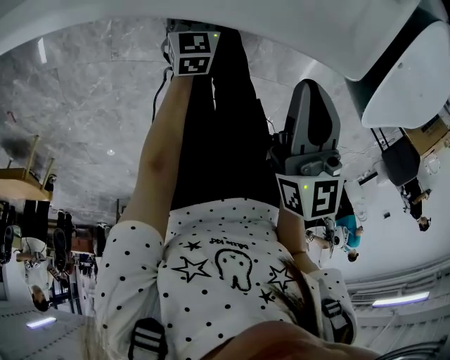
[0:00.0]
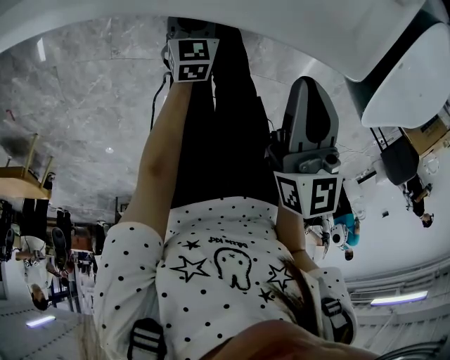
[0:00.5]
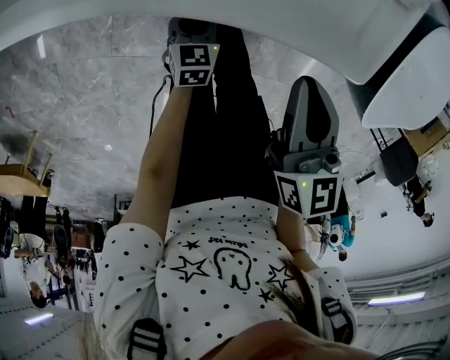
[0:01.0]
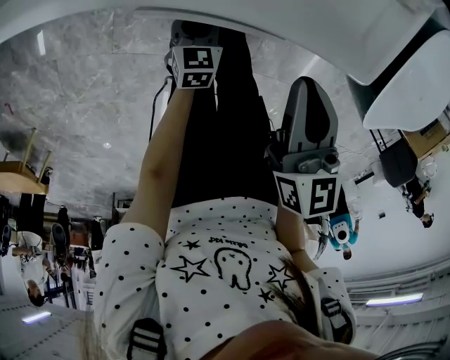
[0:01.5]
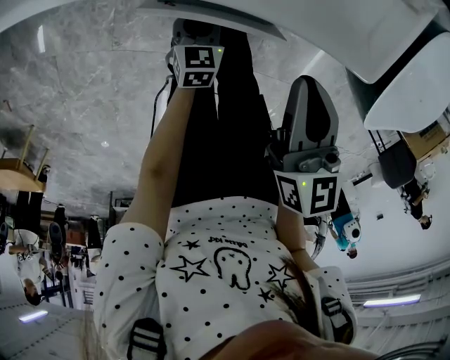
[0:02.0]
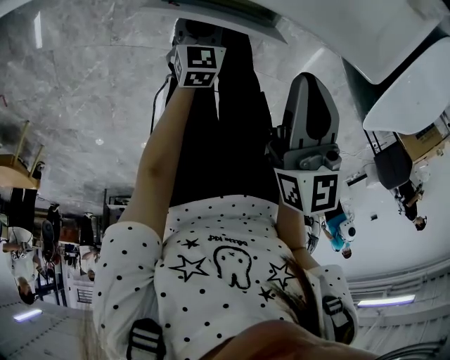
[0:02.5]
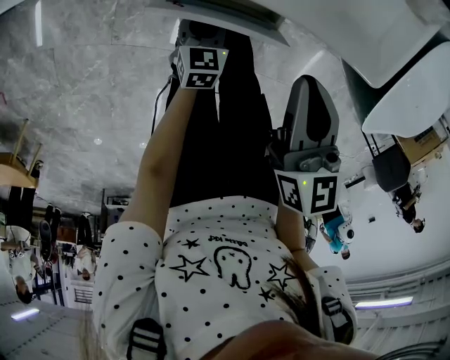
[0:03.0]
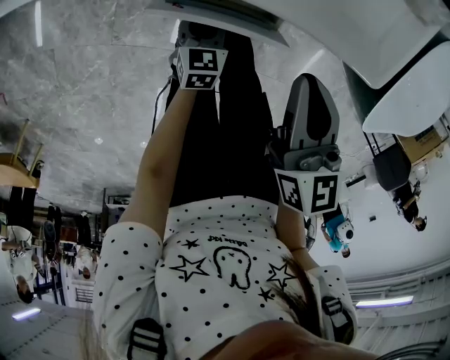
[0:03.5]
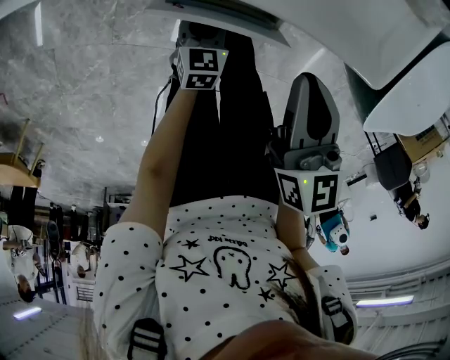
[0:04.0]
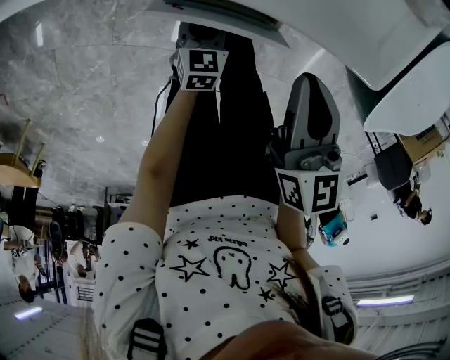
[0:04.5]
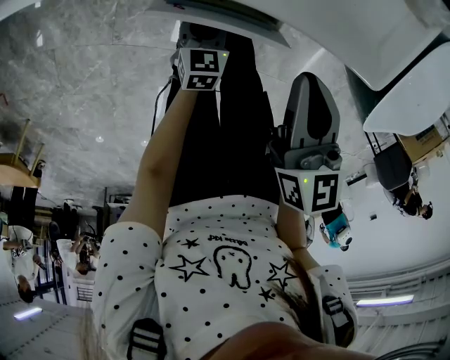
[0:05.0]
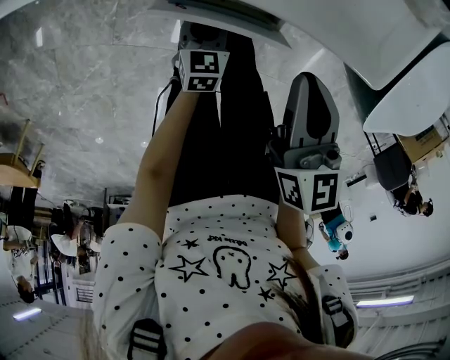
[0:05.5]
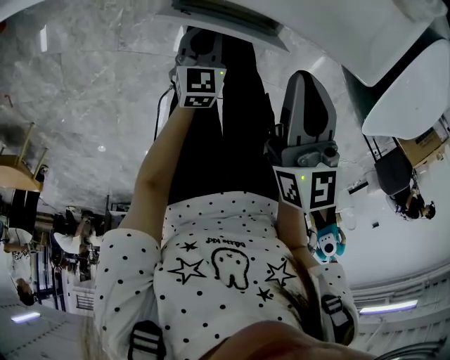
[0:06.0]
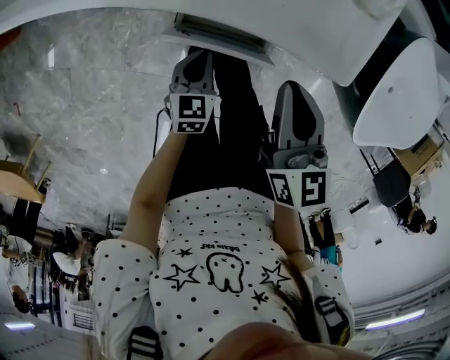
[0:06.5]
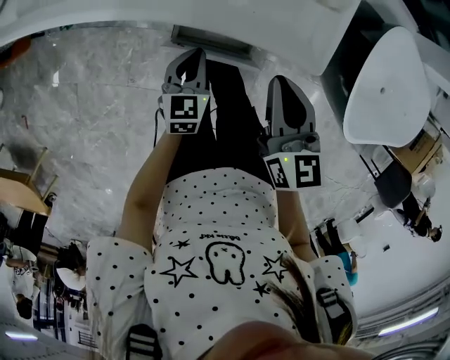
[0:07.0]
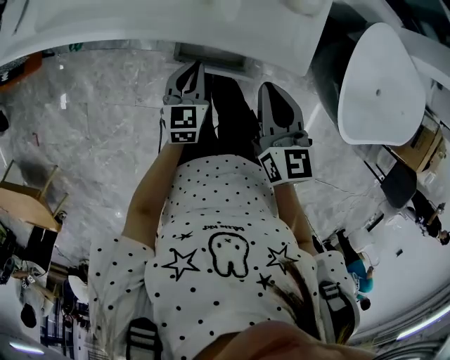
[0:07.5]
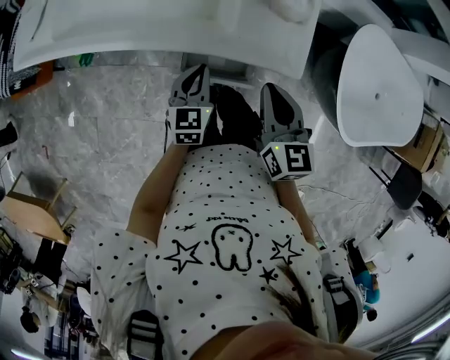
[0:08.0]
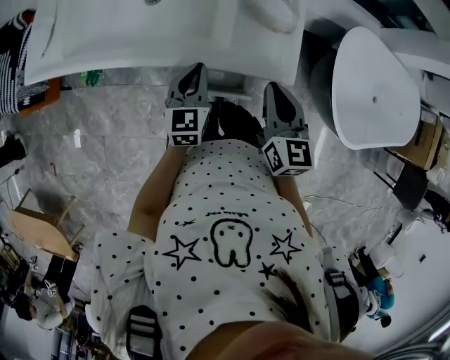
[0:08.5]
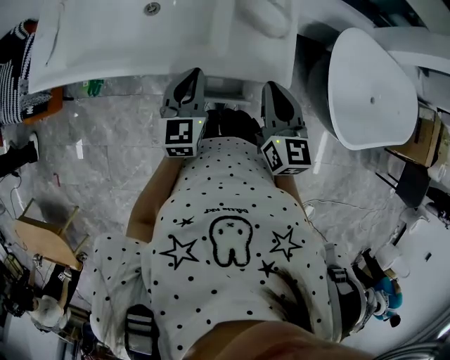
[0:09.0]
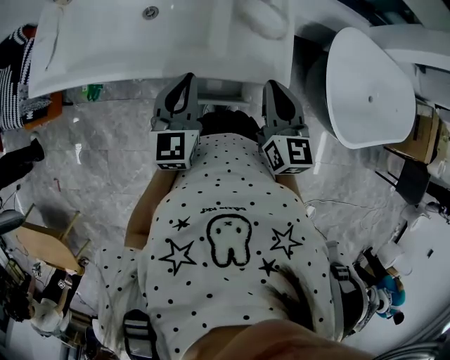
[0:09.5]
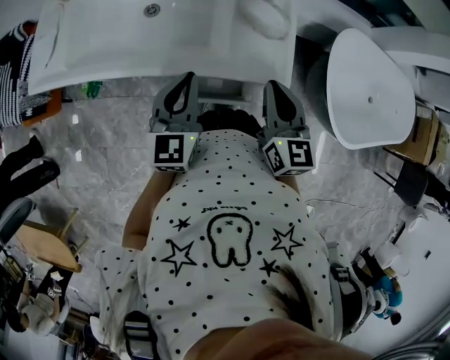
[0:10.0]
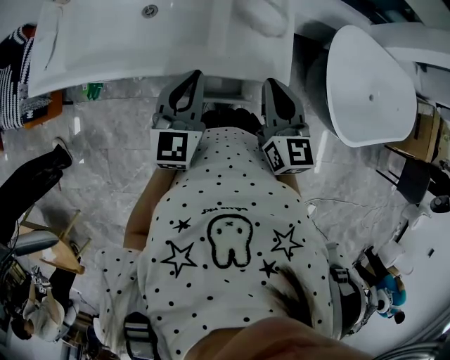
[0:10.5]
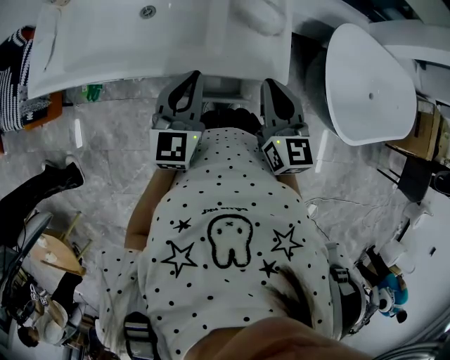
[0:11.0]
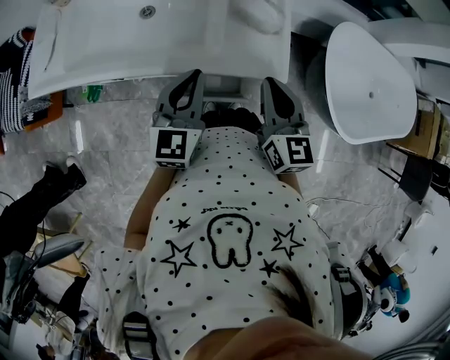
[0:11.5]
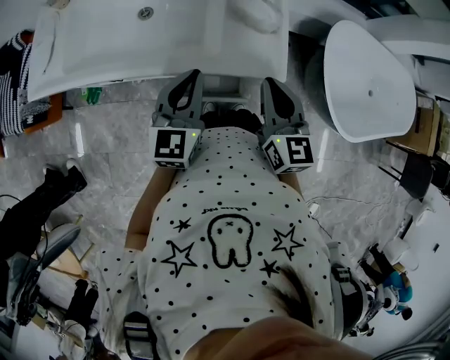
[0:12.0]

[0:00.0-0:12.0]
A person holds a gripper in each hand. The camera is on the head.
0:00.0 to 0:02.0: The left gripper goes roughly 5 cm backward.
0:02.0 to 0:04.0: There are only small adjustments of the grippers.
0:04.0 to 0:06.0: The left gripper goes approximately 5 cm upward, and closes its fingers.
0:06.0 to 0:08.0: The right gripper moves upward, roughly 10 cm; the left gripper heads upward, covering approximately 25 cm.
0:08.0 to 0:10.0: The left gripper is displaced upward by some 15 cm. The right gripper shifts approximately 5 cm upward.
0:10.0 to 0:12.0: The grippers move only a little.

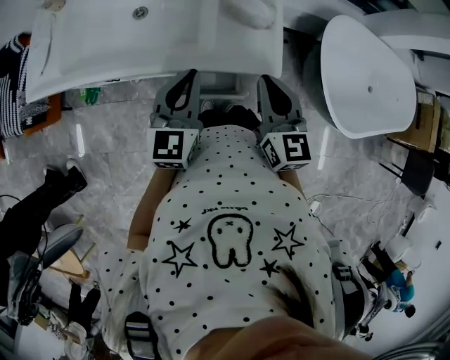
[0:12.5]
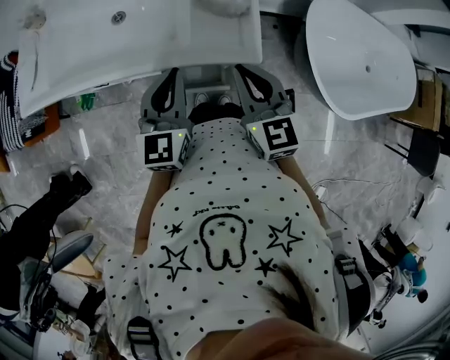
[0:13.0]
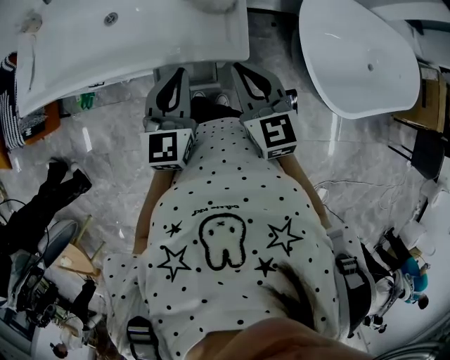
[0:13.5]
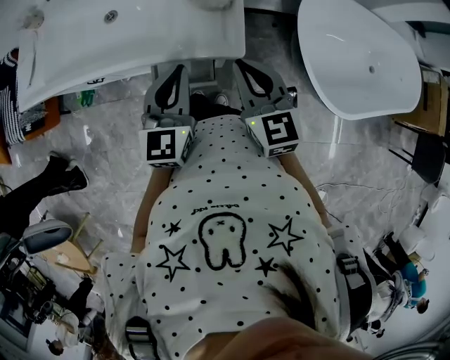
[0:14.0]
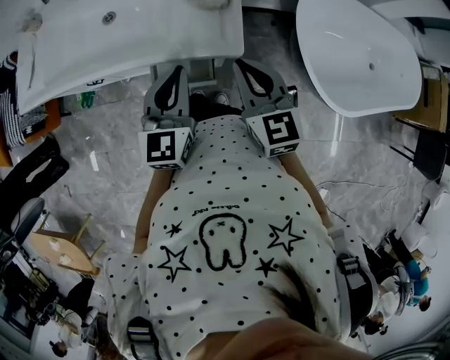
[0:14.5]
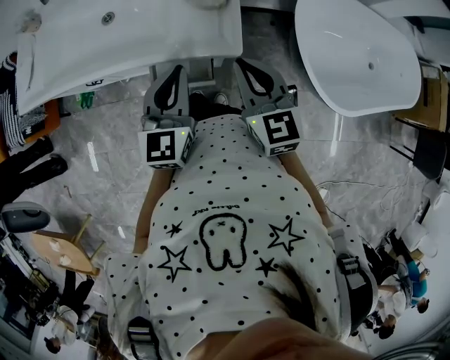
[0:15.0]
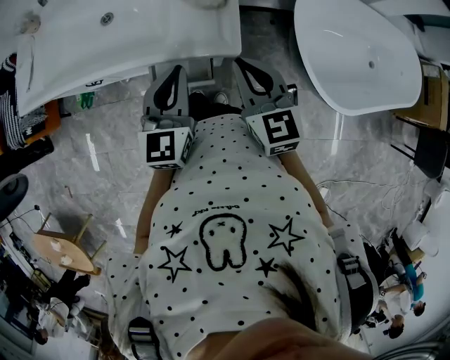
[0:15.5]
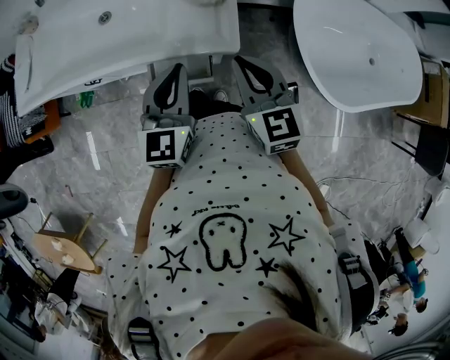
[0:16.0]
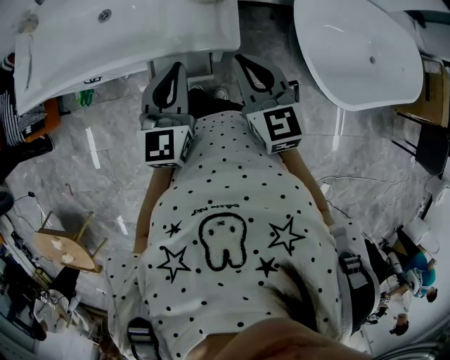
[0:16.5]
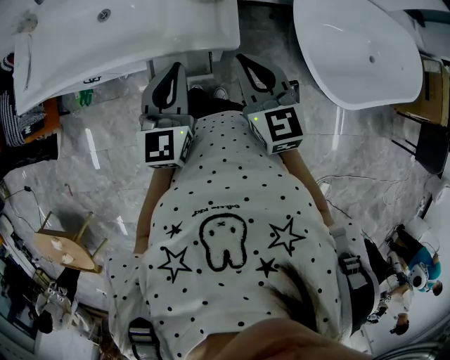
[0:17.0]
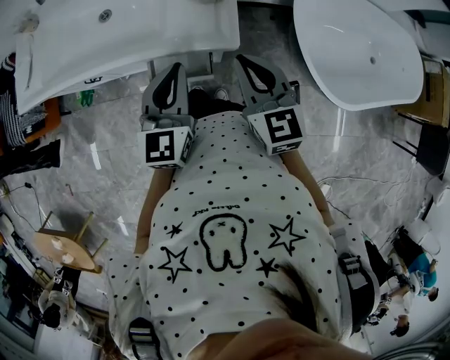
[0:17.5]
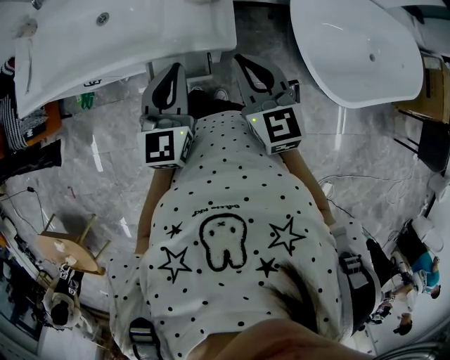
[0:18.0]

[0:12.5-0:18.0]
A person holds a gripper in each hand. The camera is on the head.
0:12.5 to 0:14.5: The two grippers go approximately 10 cm to the right.
0:14.5 to 0:18.0: Both grippers stay about where they are.

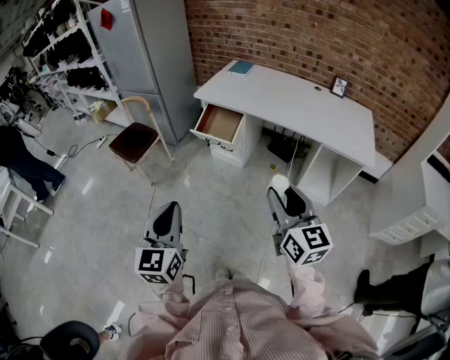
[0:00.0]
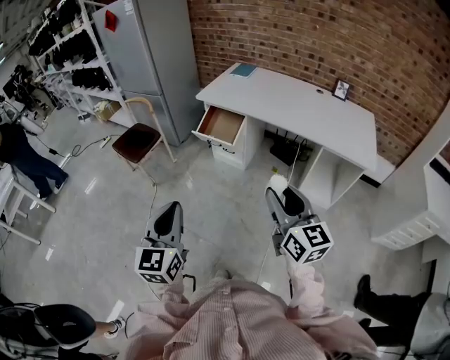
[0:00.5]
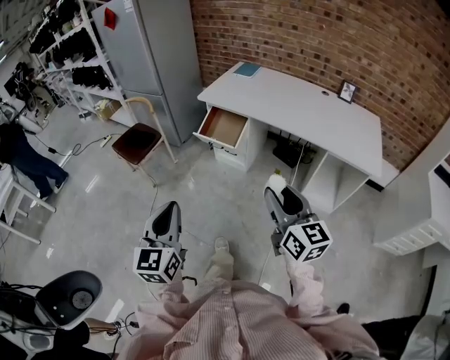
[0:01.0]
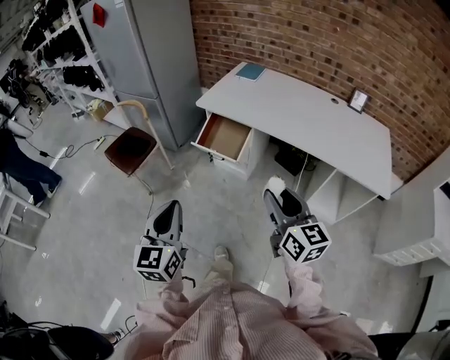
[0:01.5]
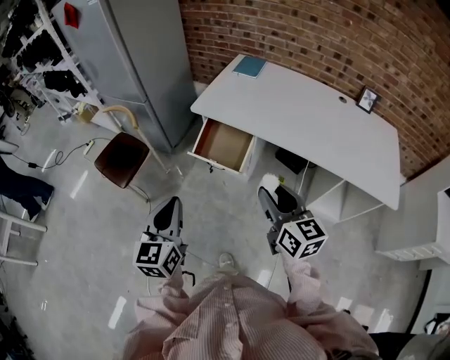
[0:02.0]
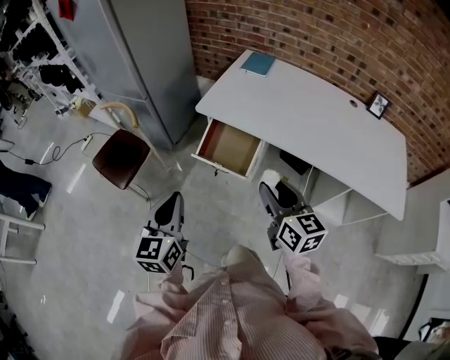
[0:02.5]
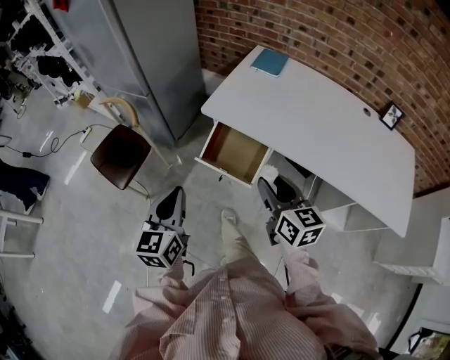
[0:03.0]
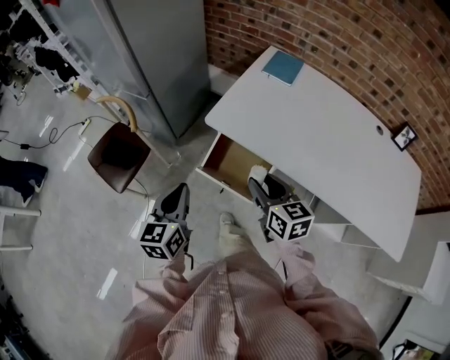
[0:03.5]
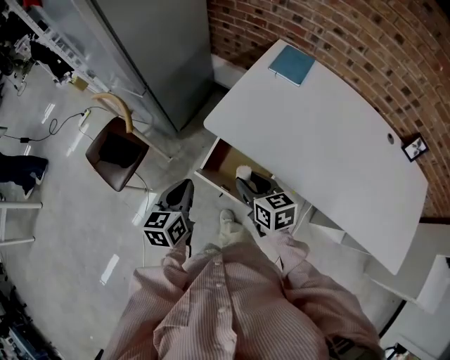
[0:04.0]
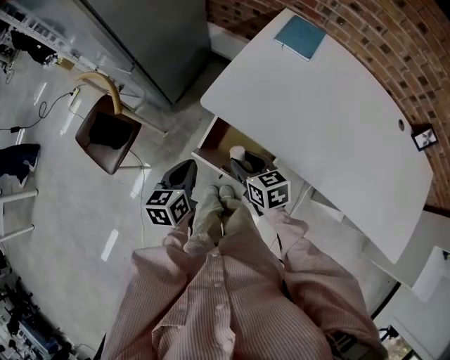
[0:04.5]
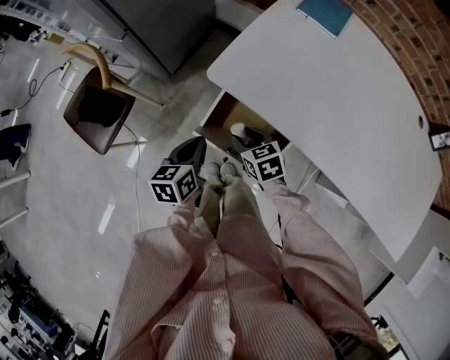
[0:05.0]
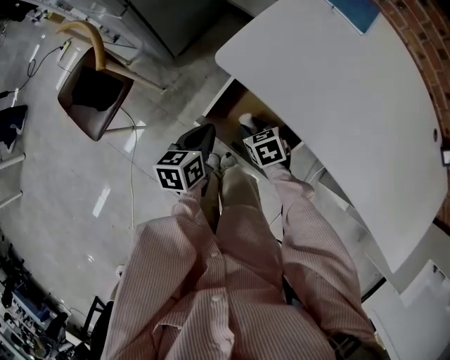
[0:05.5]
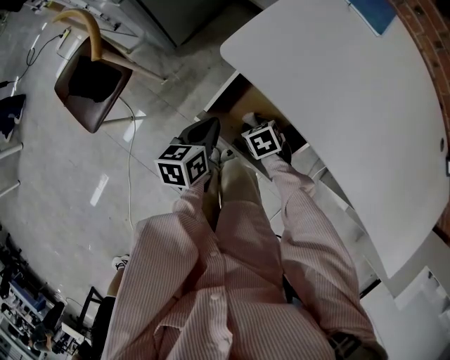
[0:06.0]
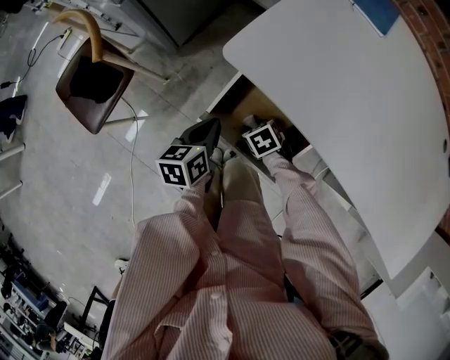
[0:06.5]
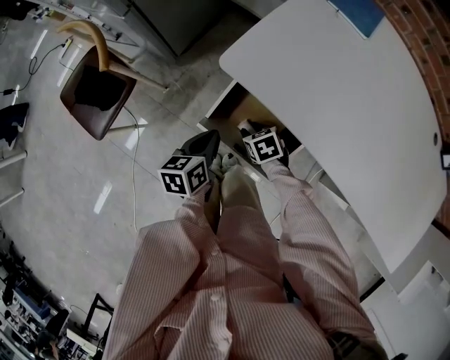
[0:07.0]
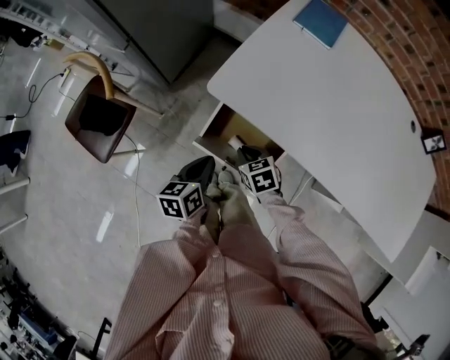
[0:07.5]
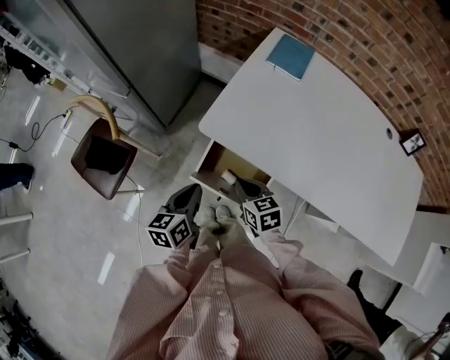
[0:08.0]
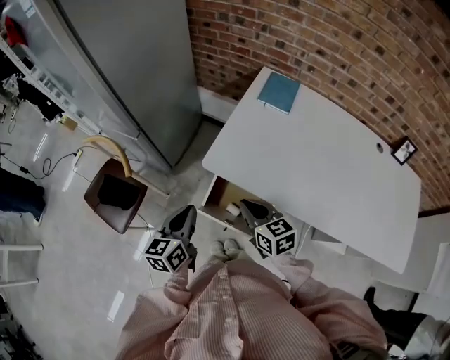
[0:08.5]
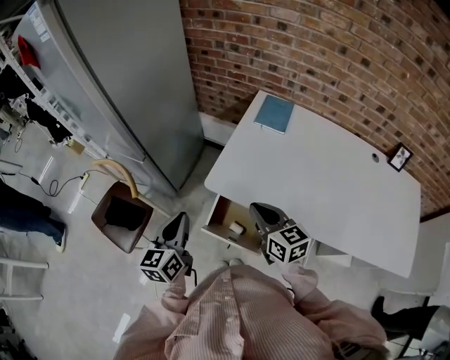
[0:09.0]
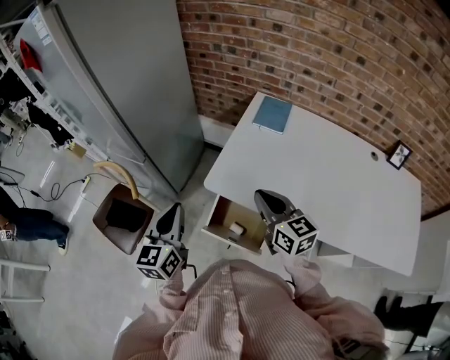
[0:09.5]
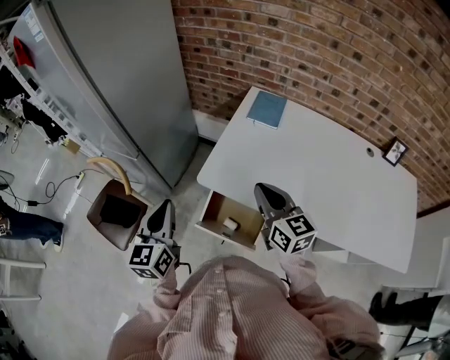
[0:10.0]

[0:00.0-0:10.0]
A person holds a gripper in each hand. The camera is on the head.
0:00.0 to 0:02.0: The two grippers go about 35 cm forward.
0:02.0 to 0:04.0: The two grippers go about 35 cm forward and downward. The left gripper turns by about 20 degrees, while the right gripper rotates roughly 30 degrees.
0:04.0 to 0:06.0: Both grippers move downward, about 30 cm. The right gripper points its fingers approximately 40 degrees further downward.
0:06.0 to 0:08.0: Both grippers move upward, roughly 20 cm. The right gripper swivels roughly 40 degrees, and closes its fingers.
0:08.0 to 0:10.0: Both grippers travel together upward, roughly 20 cm. The right gripper angles its fingers upward, by approximately 30 degrees. The left gripper swivels some 30 degrees.
